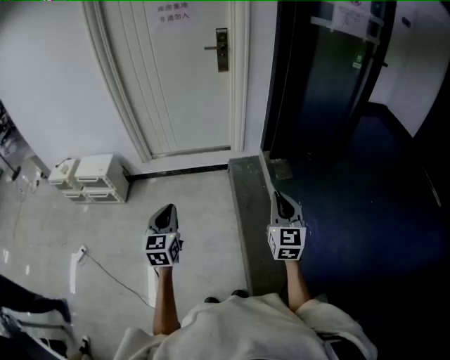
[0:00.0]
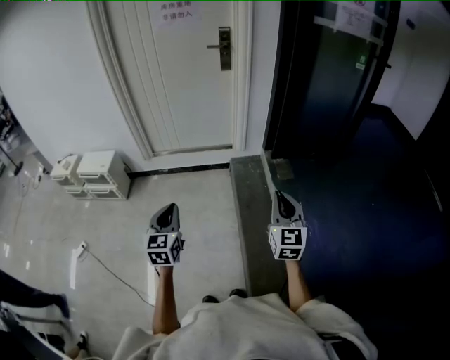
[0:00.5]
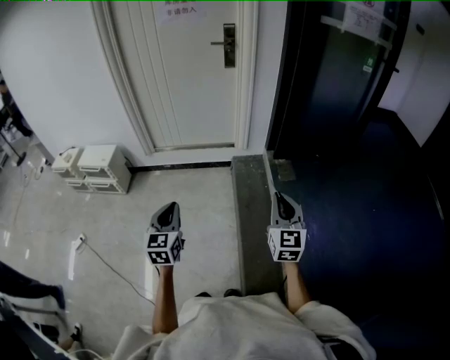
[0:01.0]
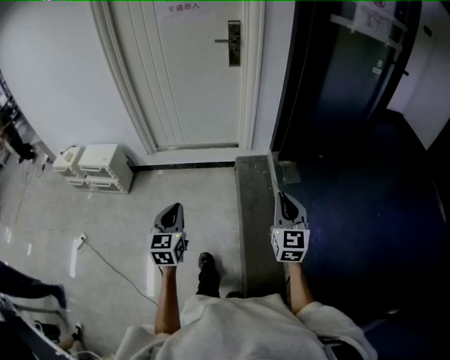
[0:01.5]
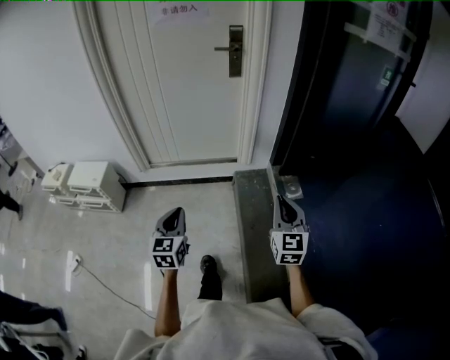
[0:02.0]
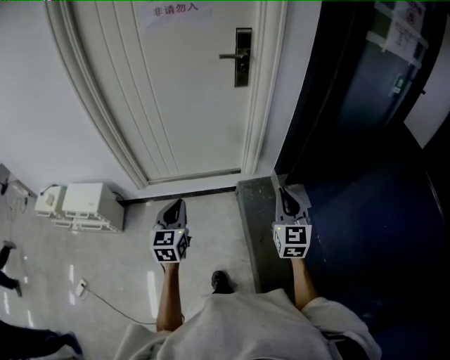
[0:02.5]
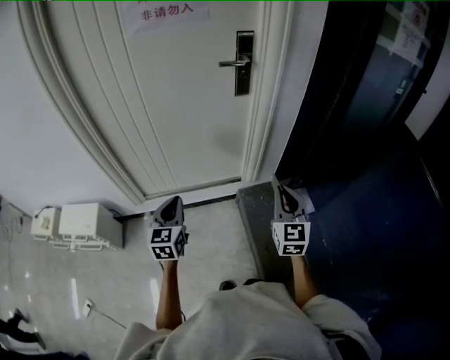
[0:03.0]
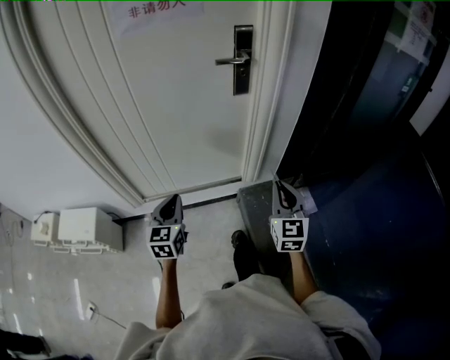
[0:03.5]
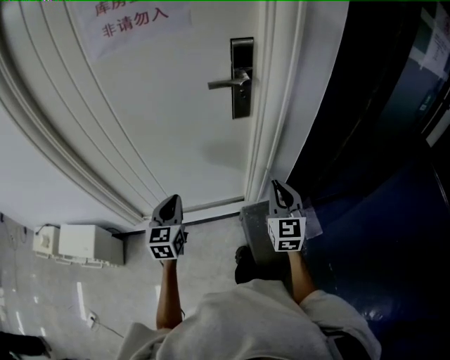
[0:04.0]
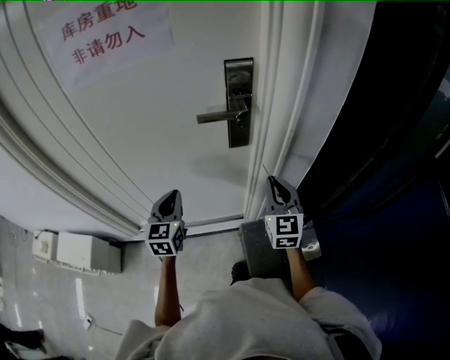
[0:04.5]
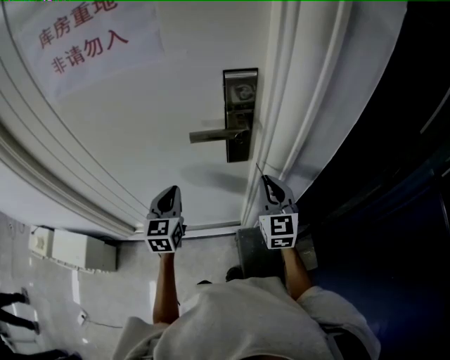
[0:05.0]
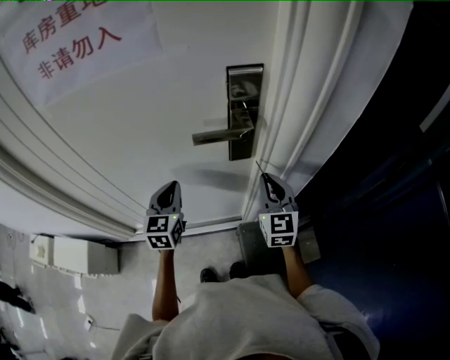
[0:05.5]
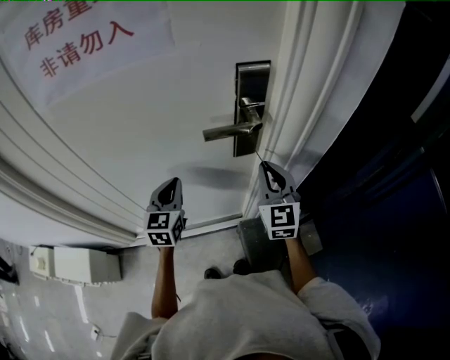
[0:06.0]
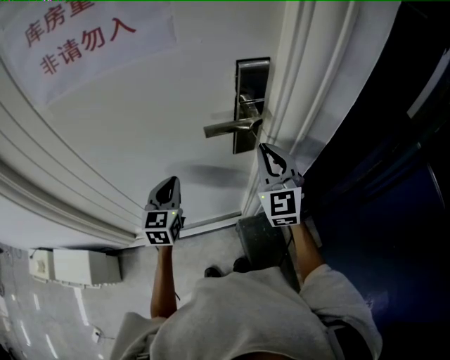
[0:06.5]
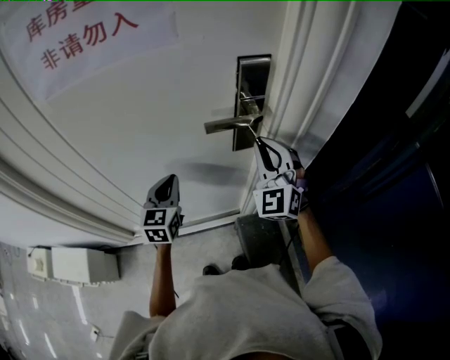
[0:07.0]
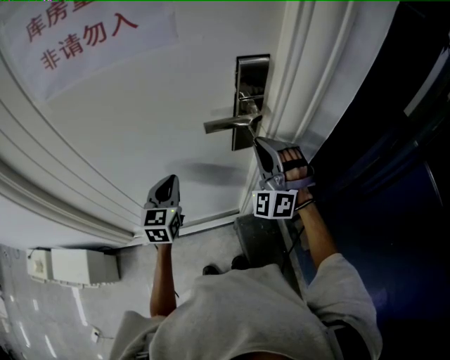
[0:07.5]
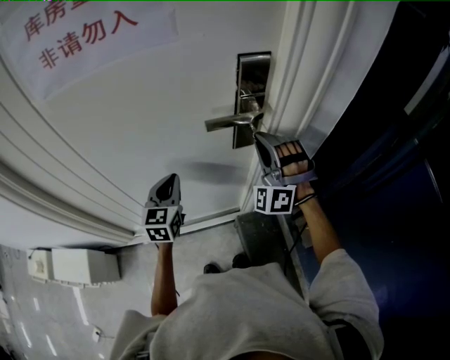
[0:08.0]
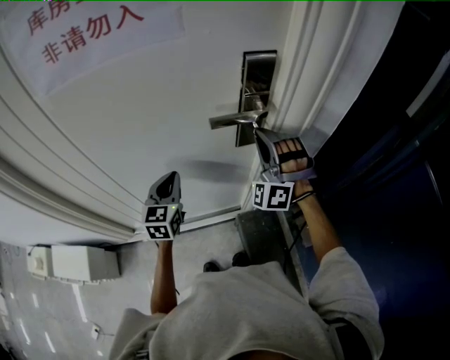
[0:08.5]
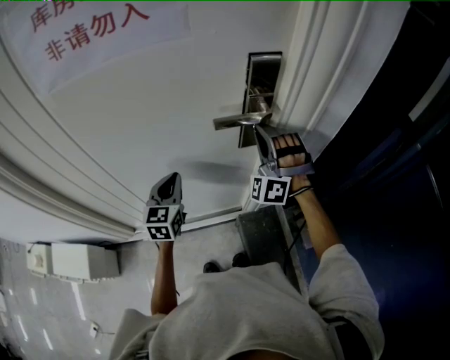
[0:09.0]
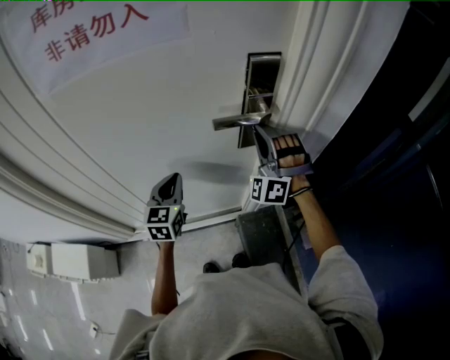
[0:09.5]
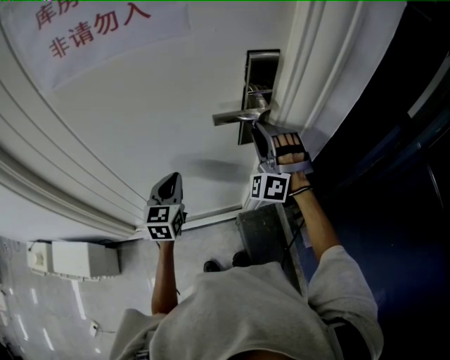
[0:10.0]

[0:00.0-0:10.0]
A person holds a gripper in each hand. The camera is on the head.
0.0 to 2.0 s: The two grippers go about 20 cm forward.
2.0 to 4.0 s: The two grippers travel together, forward, roughly 50 cm.
4.0 to 6.0 s: Both grippers travel together forward, roughly 25 cm.
6.0 to 8.0 s: The right gripper shifts by roughly 5 cm, and rotates around the line of its fingers by roughly 70 degrees, counterclockwise from behind.
8.0 to 10.0 s: The right gripper opens its fingers.

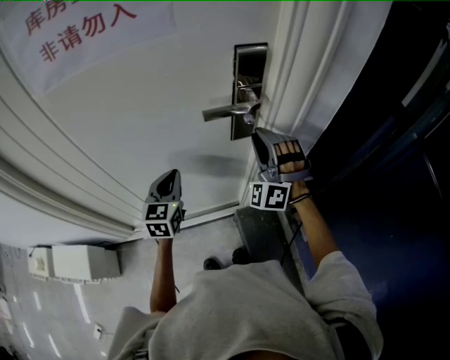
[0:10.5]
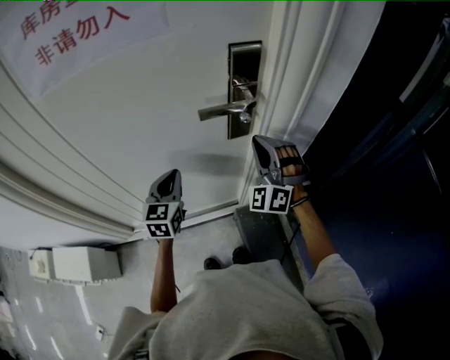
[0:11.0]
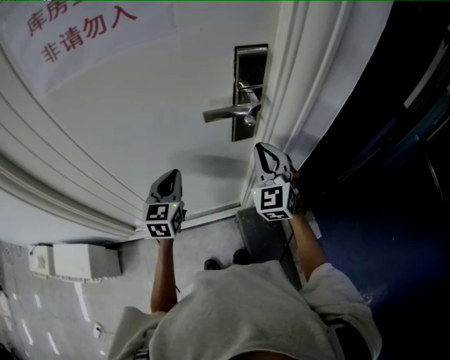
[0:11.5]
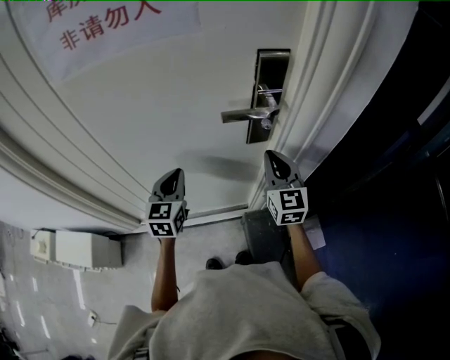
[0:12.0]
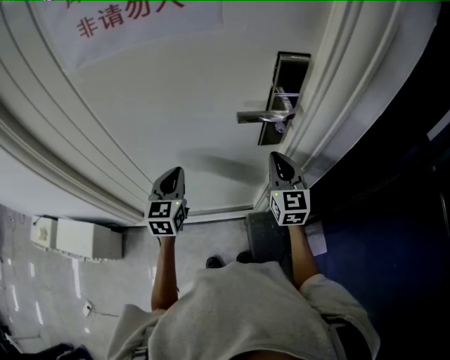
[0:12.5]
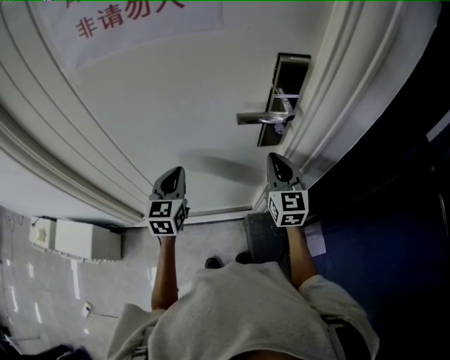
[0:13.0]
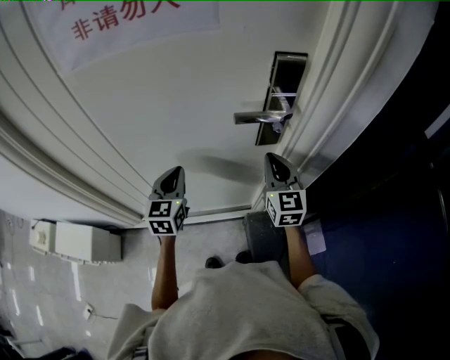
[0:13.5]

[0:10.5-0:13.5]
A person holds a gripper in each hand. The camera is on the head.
10.5 to 12.0 s: The right gripper twists some 70 degrees clockwise, seen from behind, and closes its fingers.
12.0 to 13.5 s: There are only small adjustments of the grippers.

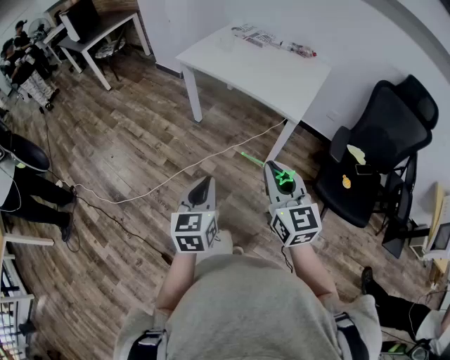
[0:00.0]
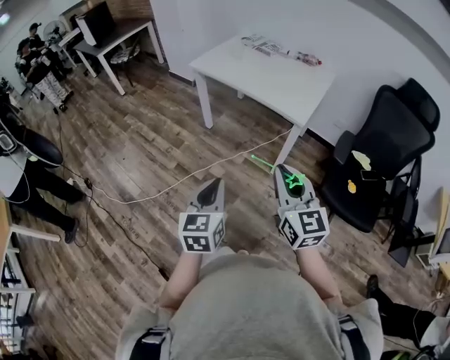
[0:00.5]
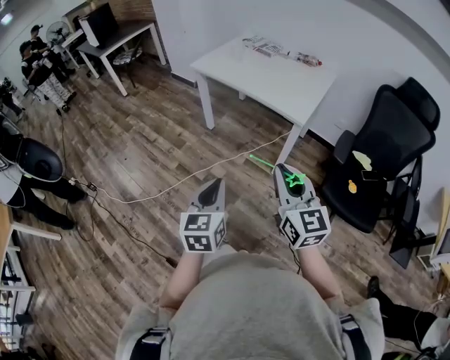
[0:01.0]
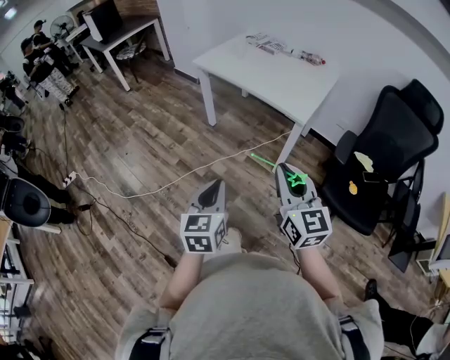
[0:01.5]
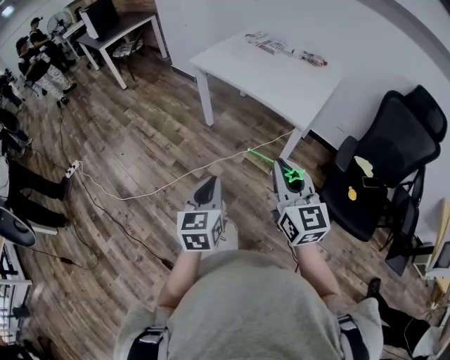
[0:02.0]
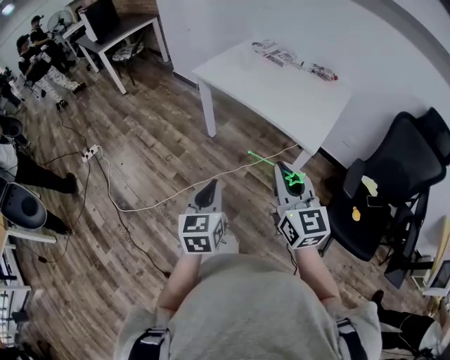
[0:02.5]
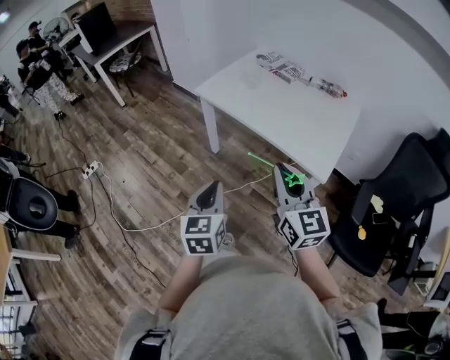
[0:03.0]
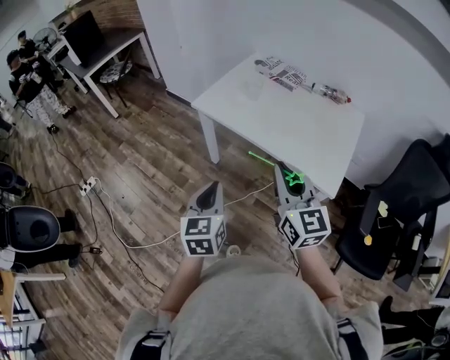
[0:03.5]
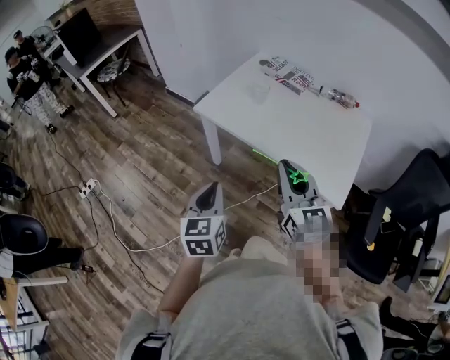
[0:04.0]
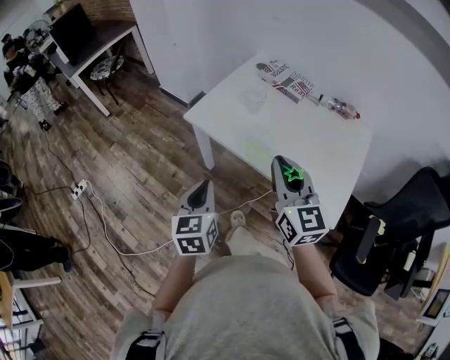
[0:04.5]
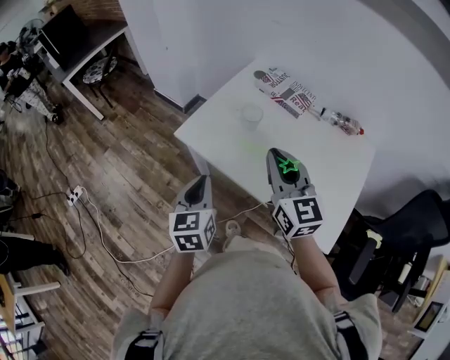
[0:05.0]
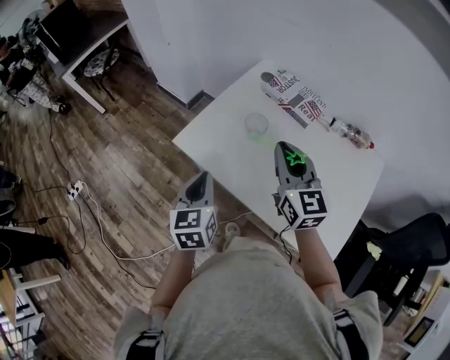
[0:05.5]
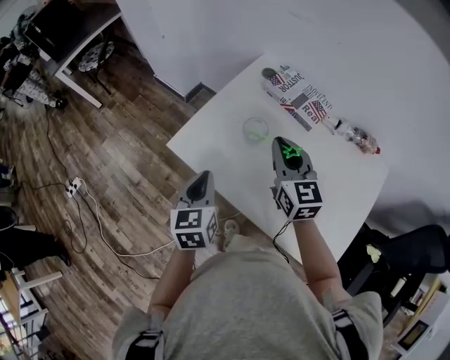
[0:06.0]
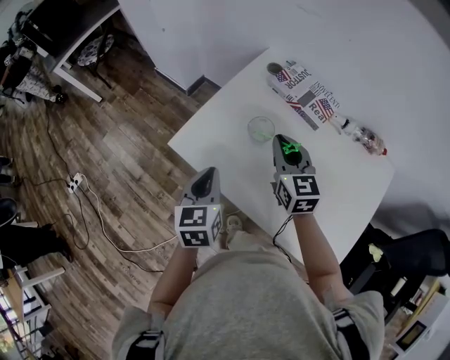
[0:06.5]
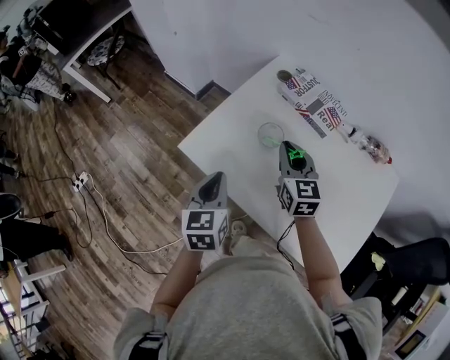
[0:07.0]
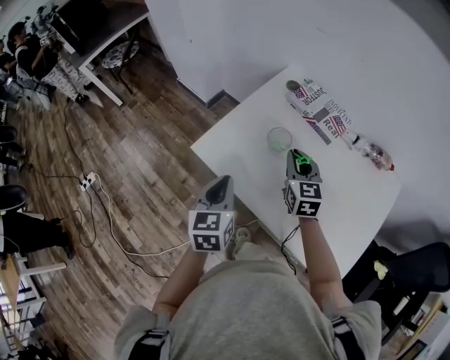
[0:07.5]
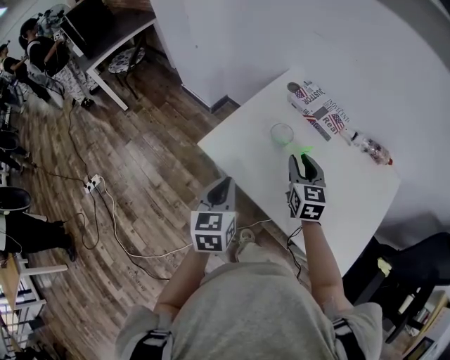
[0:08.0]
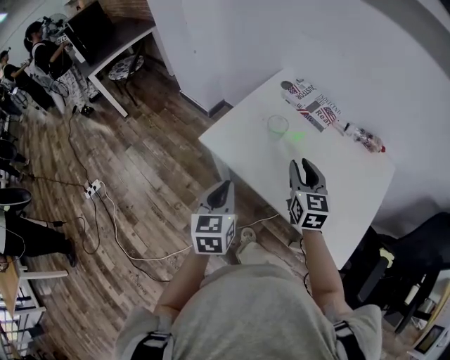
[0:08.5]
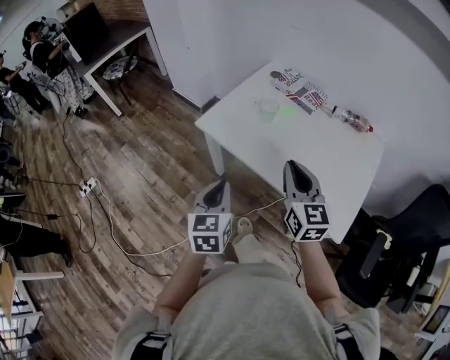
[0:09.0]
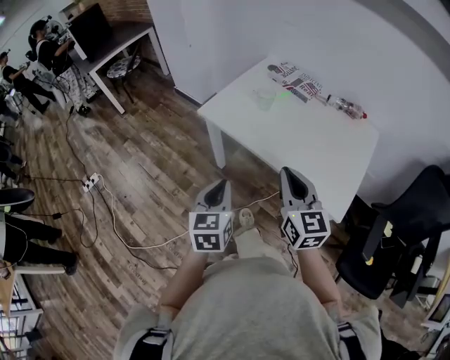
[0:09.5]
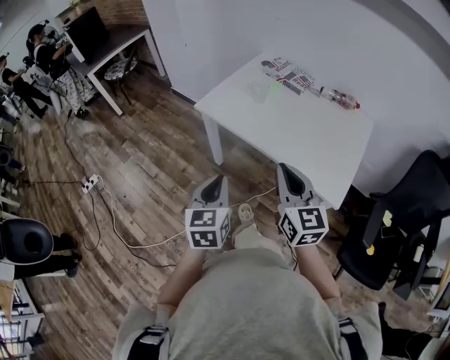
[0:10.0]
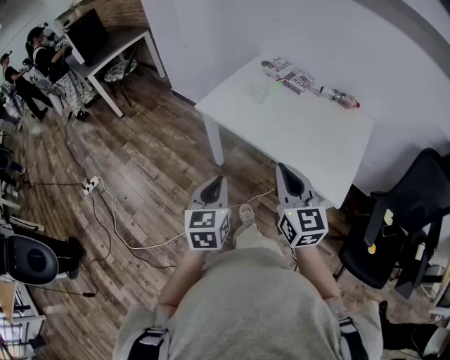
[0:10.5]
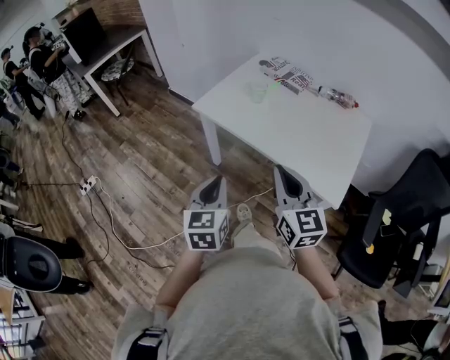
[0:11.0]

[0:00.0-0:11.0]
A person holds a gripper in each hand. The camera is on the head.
0.0 to 2.0 s: The left gripper reaches about 10 cm backward, then returns.
2.0 to 3.5 s: Both grippers travel together forward, approximately 35 cm.
3.5 to 5.5 s: Both grippers move forward, approximately 35 cm.
5.5 to 7.5 s: The right gripper moves downward and forward, roughly 15 cm.
7.5 to 9.0 s: The left gripper shifts approximately 20 cm backward. Meanwhile the right gripper heads backward and upward, covering roughly 30 cm, and opens, then closes once more.
9.0 to 11.0 s: The grippers both shift backward by approximately 15 cm.

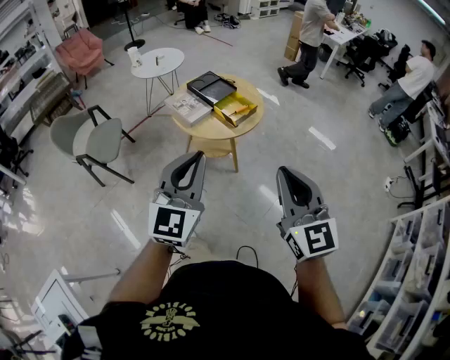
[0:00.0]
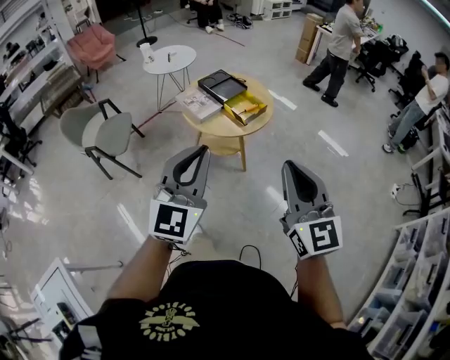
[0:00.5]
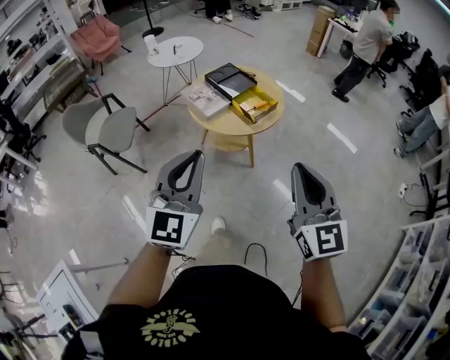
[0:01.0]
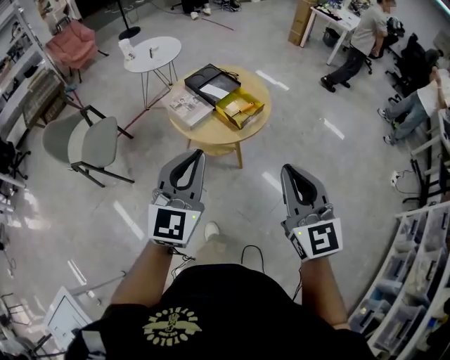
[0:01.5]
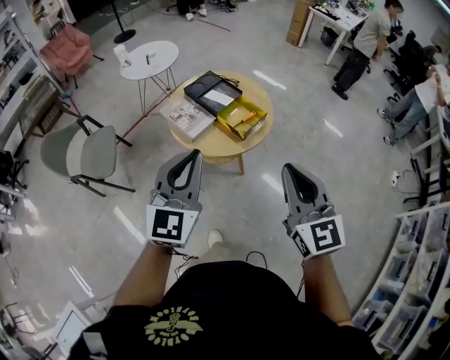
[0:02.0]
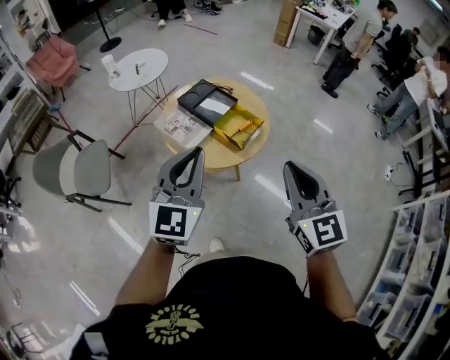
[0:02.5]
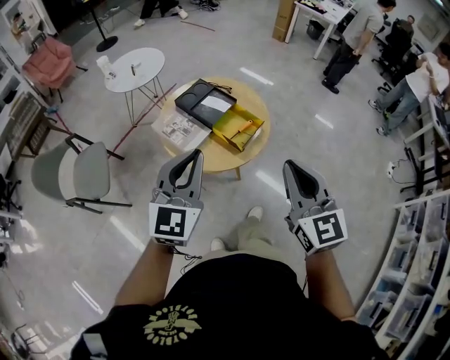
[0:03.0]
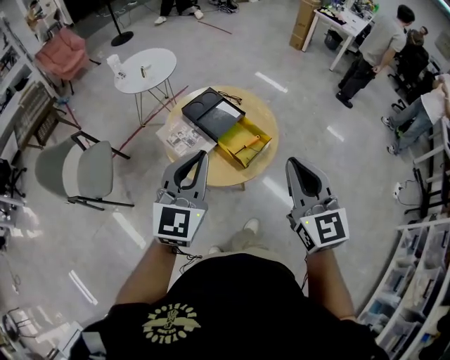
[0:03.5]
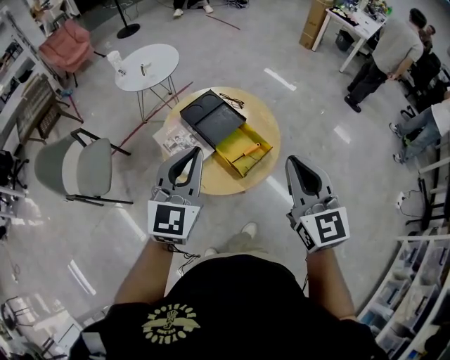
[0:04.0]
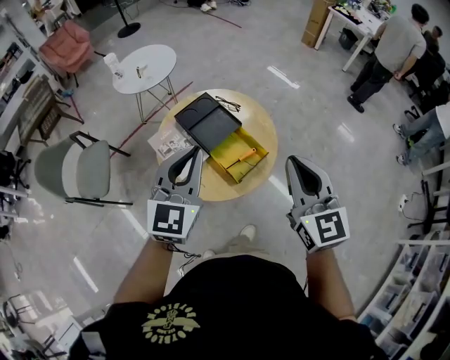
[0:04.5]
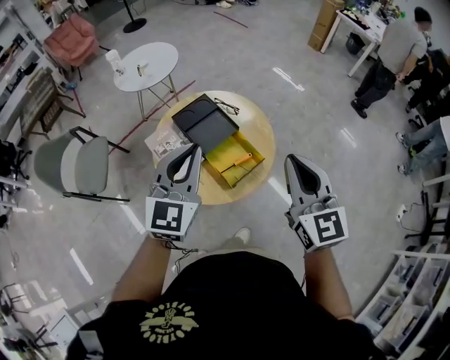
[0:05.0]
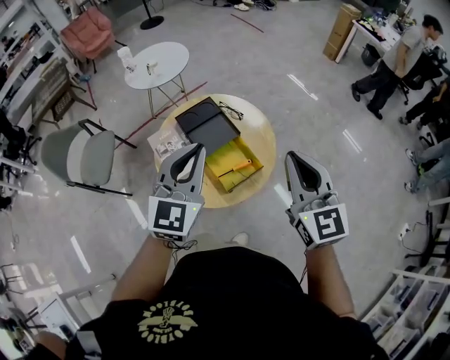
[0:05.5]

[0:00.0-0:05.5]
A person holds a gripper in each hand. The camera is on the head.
0.0 to 2.0 s: Both grippers move forward, about 20 cm.
2.0 to 3.5 s: Both grippers travel together forward, roughly 15 cm.
3.5 to 5.5 s: Both grippers move forward and to the right, some 20 cm.
